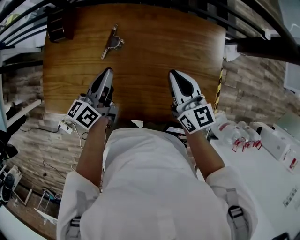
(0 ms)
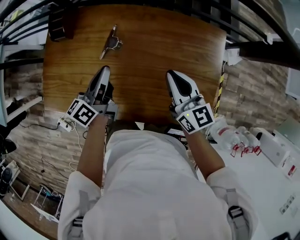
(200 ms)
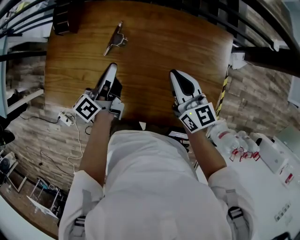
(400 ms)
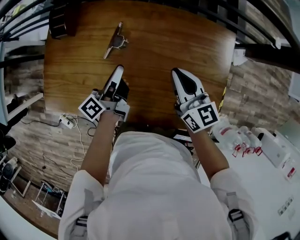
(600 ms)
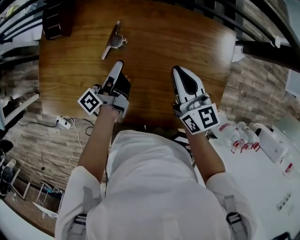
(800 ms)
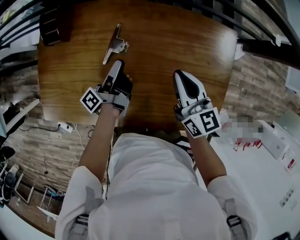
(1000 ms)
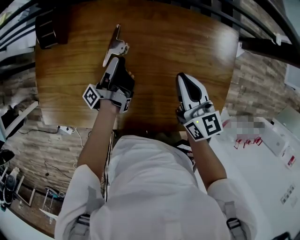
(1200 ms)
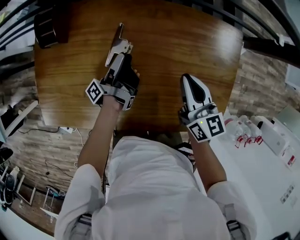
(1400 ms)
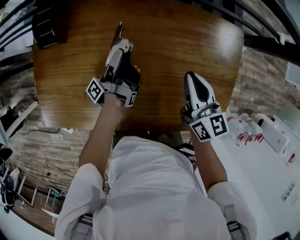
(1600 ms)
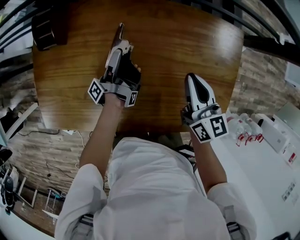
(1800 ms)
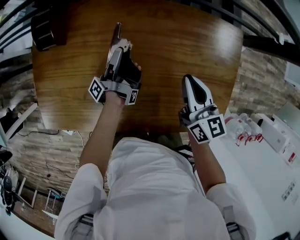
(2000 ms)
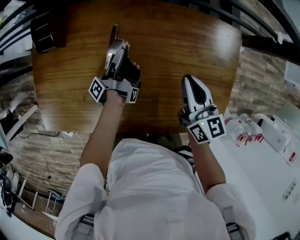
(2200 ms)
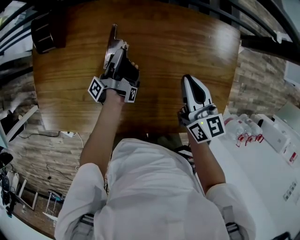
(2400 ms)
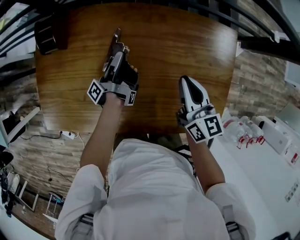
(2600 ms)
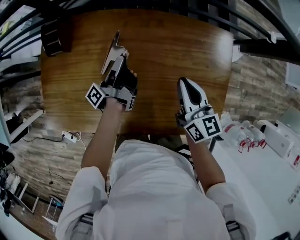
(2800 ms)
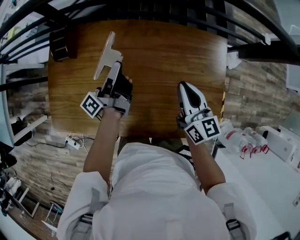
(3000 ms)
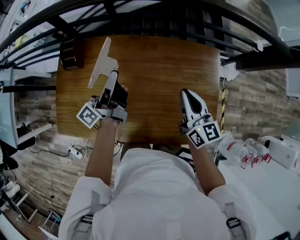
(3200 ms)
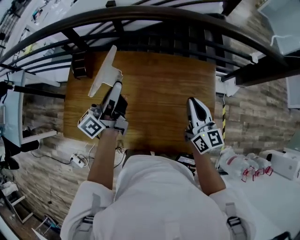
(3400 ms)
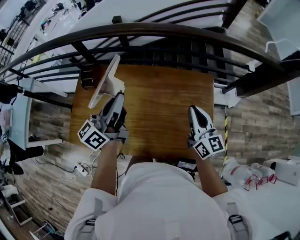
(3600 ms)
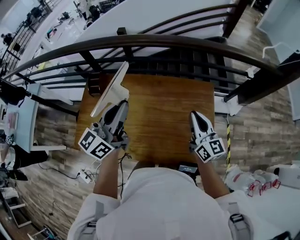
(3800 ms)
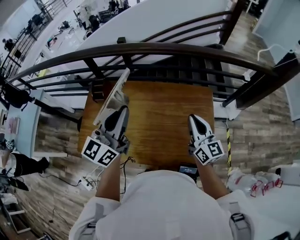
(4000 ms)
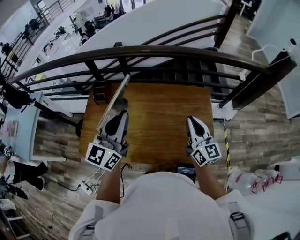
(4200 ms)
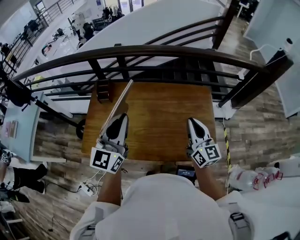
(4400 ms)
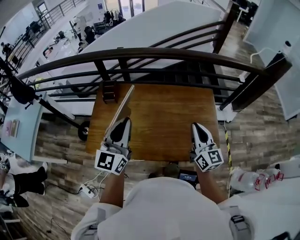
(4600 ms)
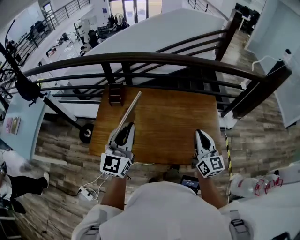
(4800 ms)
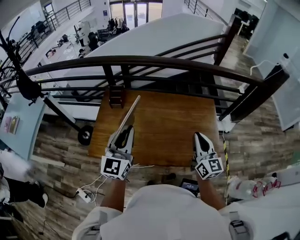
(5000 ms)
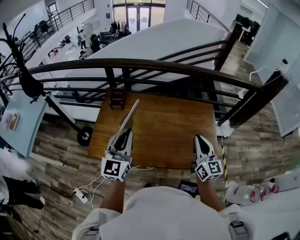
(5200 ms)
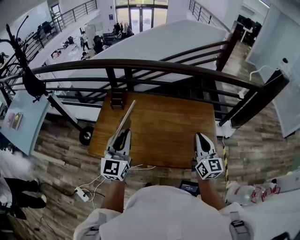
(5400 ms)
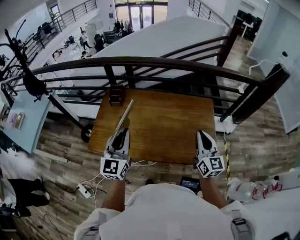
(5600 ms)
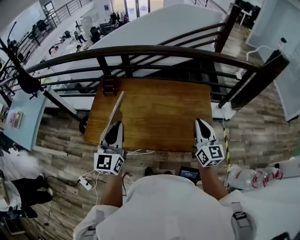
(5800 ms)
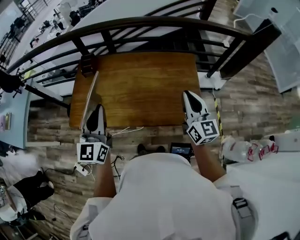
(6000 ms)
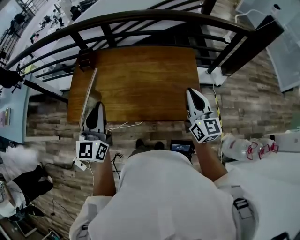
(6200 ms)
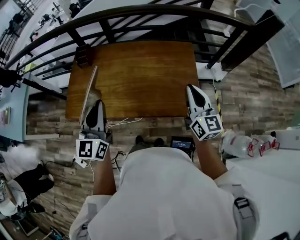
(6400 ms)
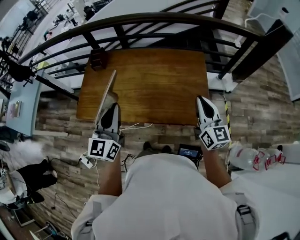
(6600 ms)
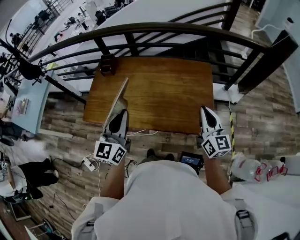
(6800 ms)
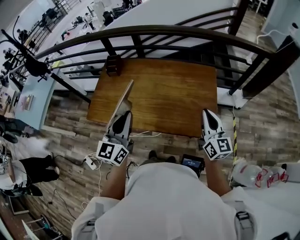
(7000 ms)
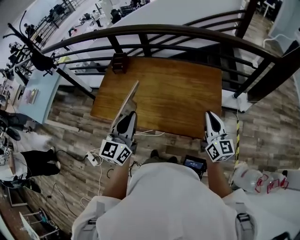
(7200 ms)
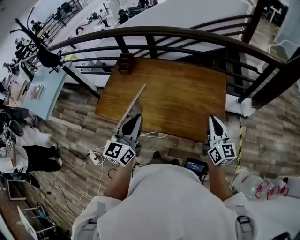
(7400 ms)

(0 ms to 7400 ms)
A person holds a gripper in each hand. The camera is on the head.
0 ms - 1400 ms: The left gripper shifts approximately 20 cm downward and forward, rotates around the line of its fingers by some 60 degrees, counterclockwise from behind, and opens its fingers. The right gripper goes roughly 5 cm downward.
1400 ms - 3000 ms: The right gripper heads upward, covering about 5 cm, while the left gripper travels upward by about 15 cm, rotates approximately 20 degrees, and closes its fingers.
3000 ms - 4400 ms: The right gripper is displaced upward and backward by approximately 25 cm. The left gripper heads upward and backward, covering approximately 40 cm, and twists about 90 degrees clockwise, seen from behind.
4400 ms - 6000 ms: The right gripper heads backward and to the right, covering about 10 cm. The left gripper travels backward by roughly 15 cm.
6000 ms - 7400 ms: The left gripper heads to the right and backward, covering approximately 10 cm. Meanwhile the right gripper heads downward, covering some 5 cm.

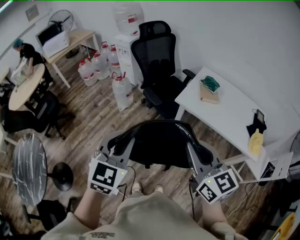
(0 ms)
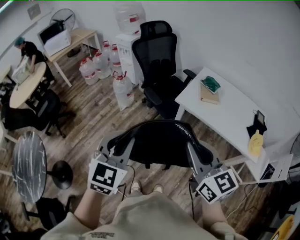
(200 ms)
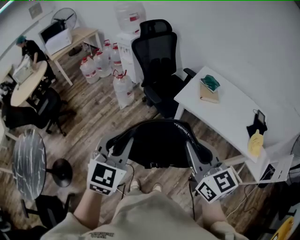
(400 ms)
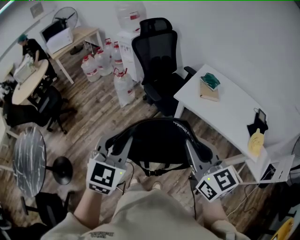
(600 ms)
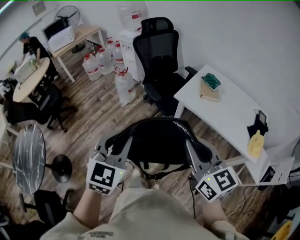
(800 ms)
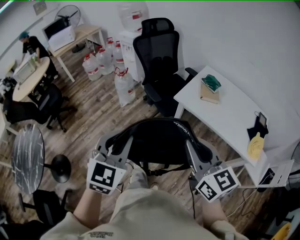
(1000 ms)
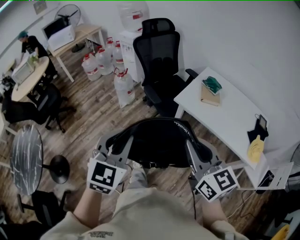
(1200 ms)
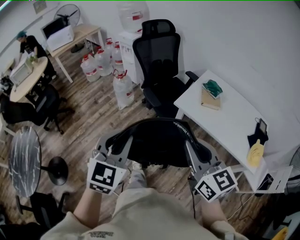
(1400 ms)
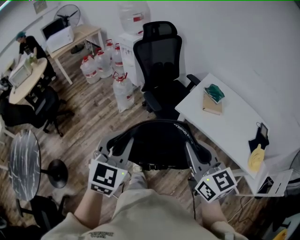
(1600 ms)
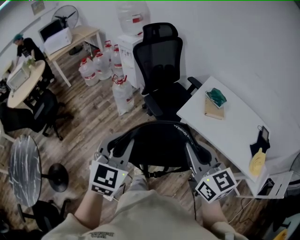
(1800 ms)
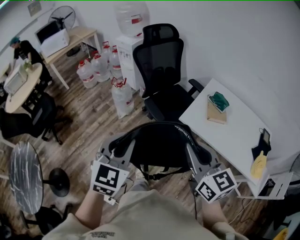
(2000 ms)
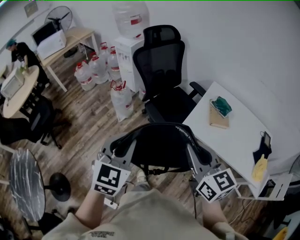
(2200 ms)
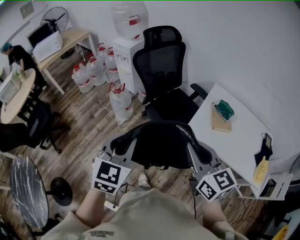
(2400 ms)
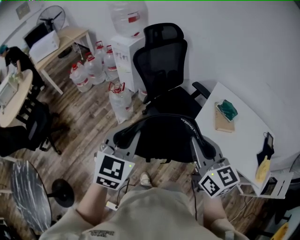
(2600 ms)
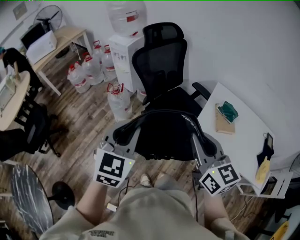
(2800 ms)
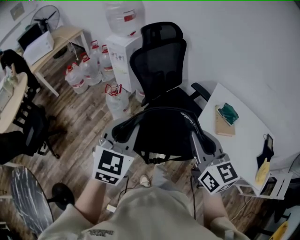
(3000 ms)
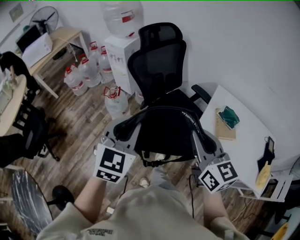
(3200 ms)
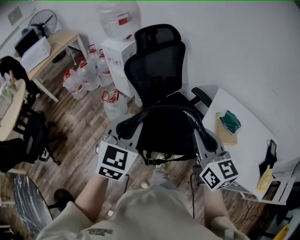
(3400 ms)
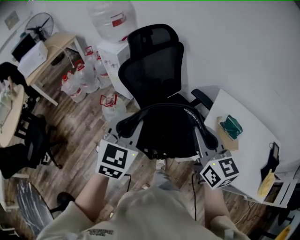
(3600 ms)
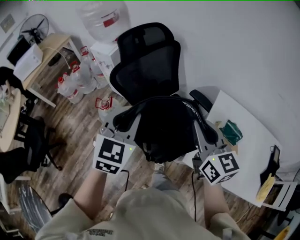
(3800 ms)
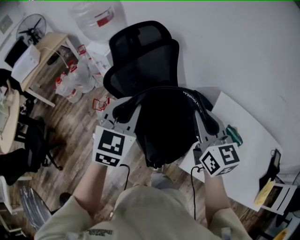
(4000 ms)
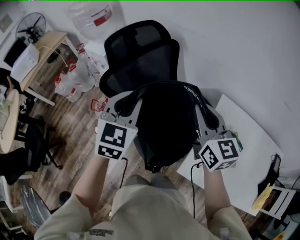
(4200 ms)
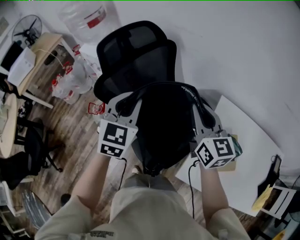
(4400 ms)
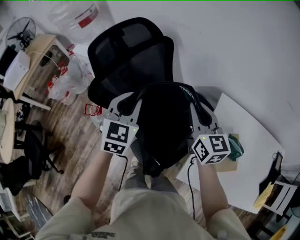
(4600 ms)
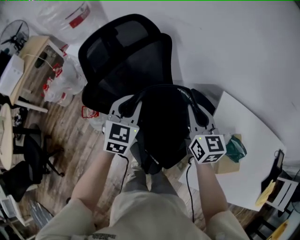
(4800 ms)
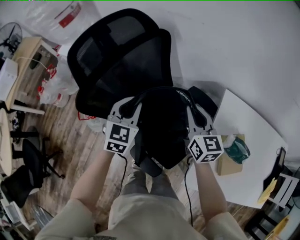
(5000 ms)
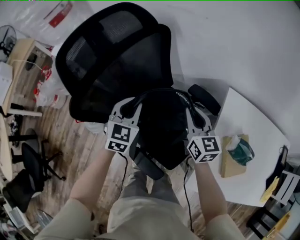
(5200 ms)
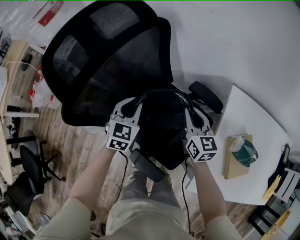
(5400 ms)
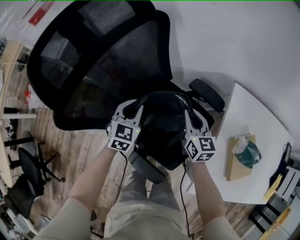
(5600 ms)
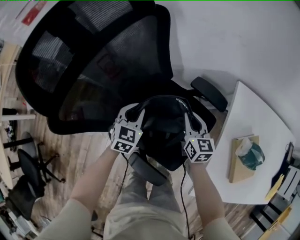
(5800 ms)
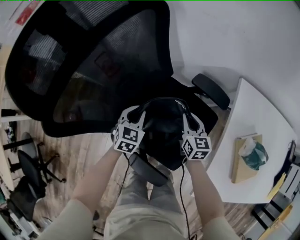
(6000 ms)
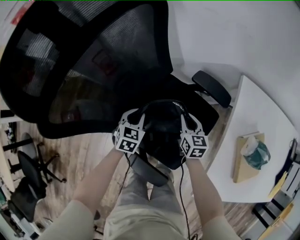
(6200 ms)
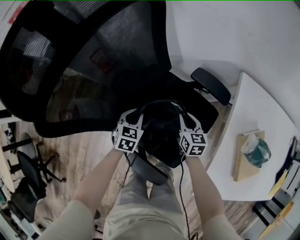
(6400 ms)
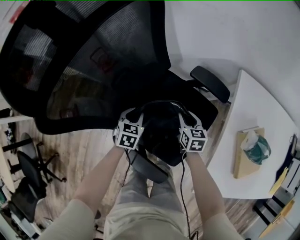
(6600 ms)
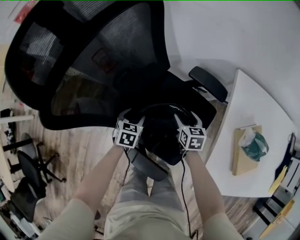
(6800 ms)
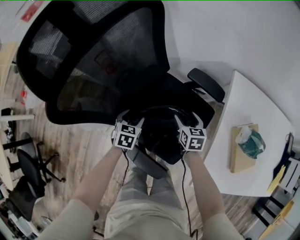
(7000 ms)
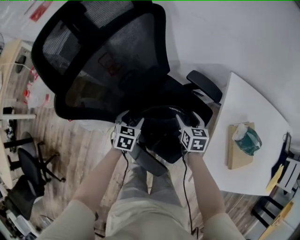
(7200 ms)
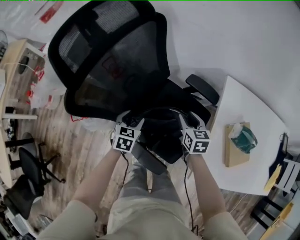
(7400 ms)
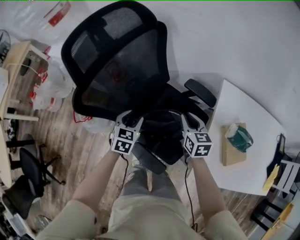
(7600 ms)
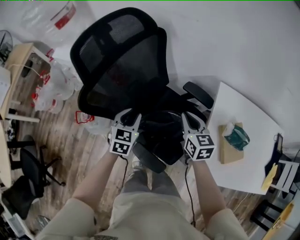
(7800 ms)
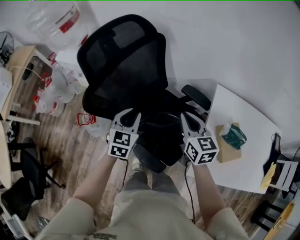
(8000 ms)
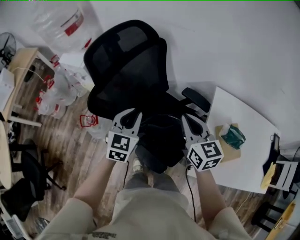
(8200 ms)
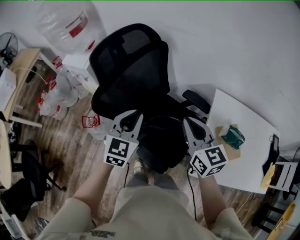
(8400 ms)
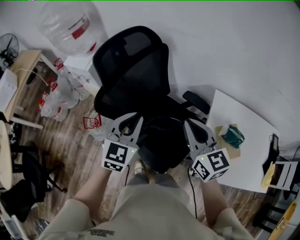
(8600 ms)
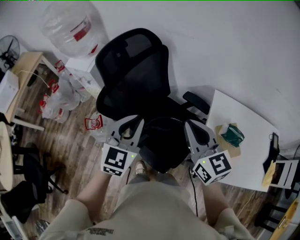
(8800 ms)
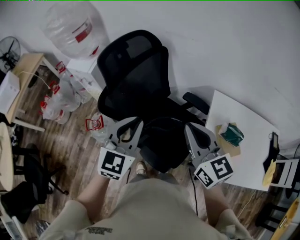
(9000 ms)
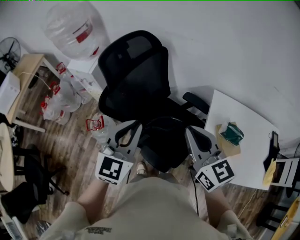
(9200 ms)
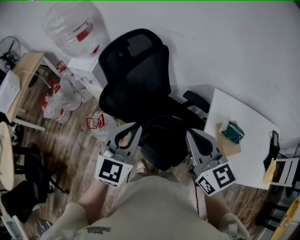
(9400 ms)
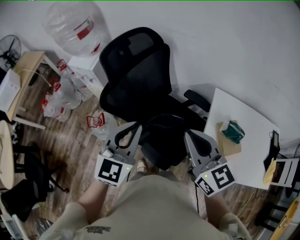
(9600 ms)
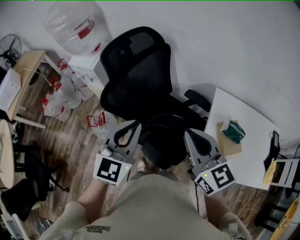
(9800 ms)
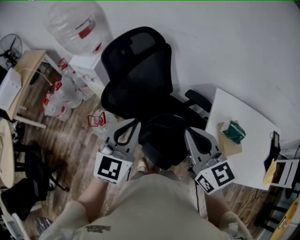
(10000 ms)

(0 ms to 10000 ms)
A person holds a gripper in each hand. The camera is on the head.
0 ms - 1400 ms: The right gripper shifts by roughly 5 cm. The left gripper ends up some 5 cm from where it was.
1400 ms - 2800 ms: The grippers both shift forward by some 30 cm.
2800 ms - 4200 ms: The pair of grippers is taken forward, approximately 40 cm.
4200 ms - 5800 ms: The left gripper goes about 40 cm downward and forward, and turns by some 20 degrees; the right gripper travels downward by about 40 cm, and rotates approximately 30 degrees.
5800 ms - 7200 ms: The left gripper is displaced backward by some 10 cm, and opens its fingers. Meanwhile the right gripper heads backward, covering about 5 cm, travels downward and back again, roughly 10 cm each way, and opens up.
7200 ms - 8600 ms: Both grippers move upward, about 40 cm. The right gripper points its fingers about 30 degrees further upward, and closes up; the left gripper angles its fingers upward, by about 30 degrees, and closes up.
8600 ms - 10000 ms: The right gripper goes about 5 cm backward; the left gripper heads upward and backward, covering about 10 cm.

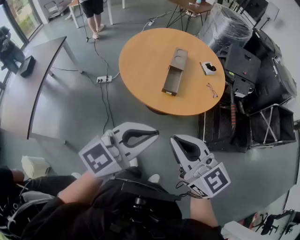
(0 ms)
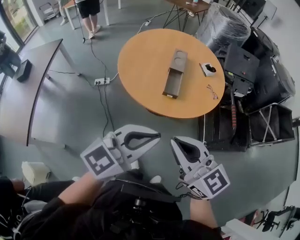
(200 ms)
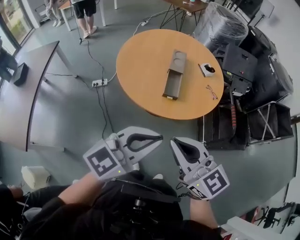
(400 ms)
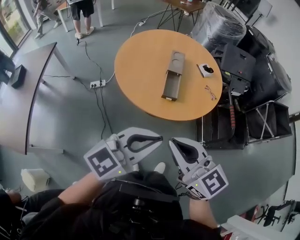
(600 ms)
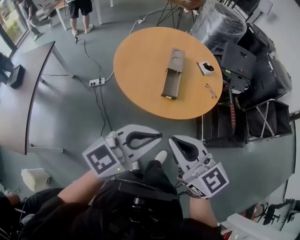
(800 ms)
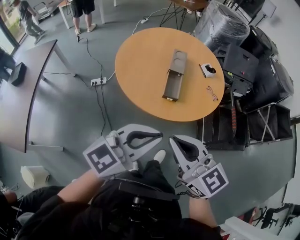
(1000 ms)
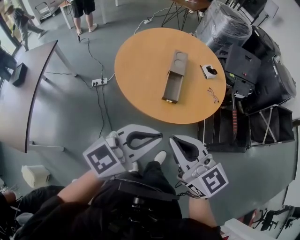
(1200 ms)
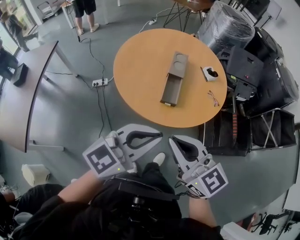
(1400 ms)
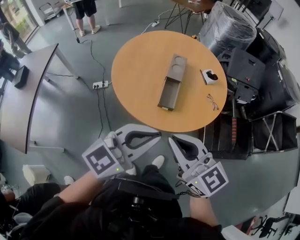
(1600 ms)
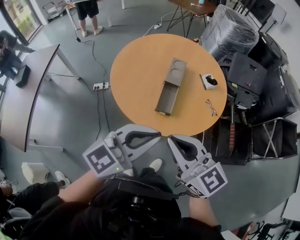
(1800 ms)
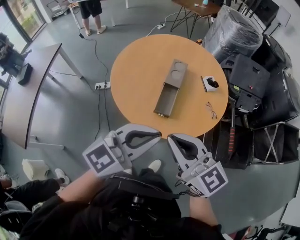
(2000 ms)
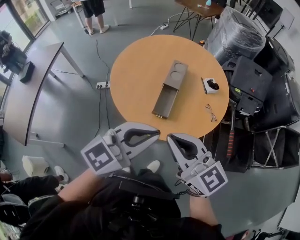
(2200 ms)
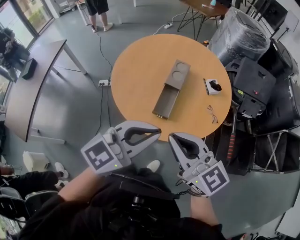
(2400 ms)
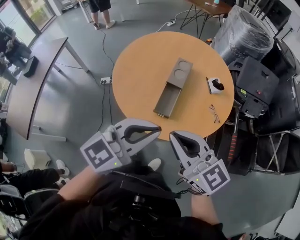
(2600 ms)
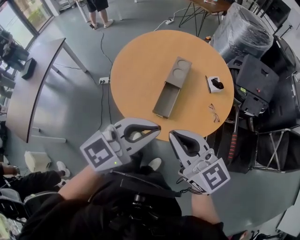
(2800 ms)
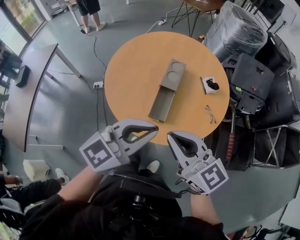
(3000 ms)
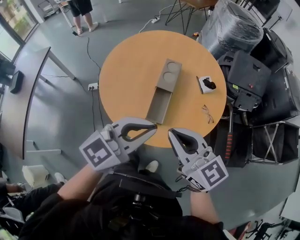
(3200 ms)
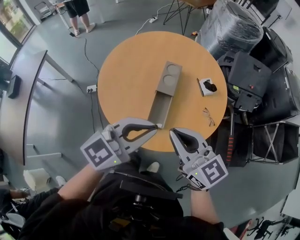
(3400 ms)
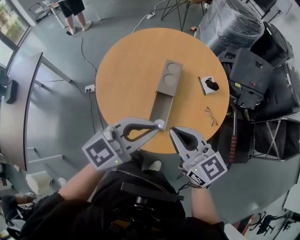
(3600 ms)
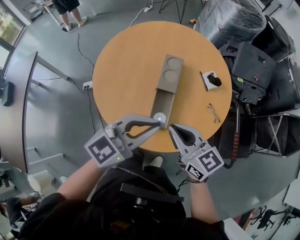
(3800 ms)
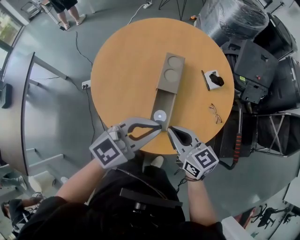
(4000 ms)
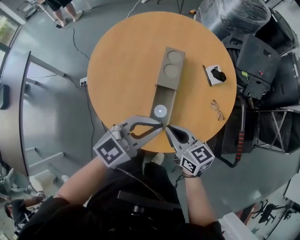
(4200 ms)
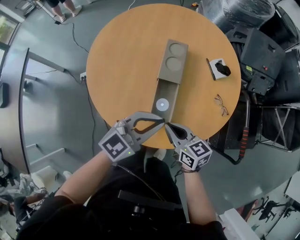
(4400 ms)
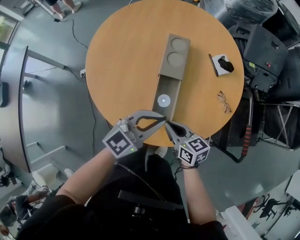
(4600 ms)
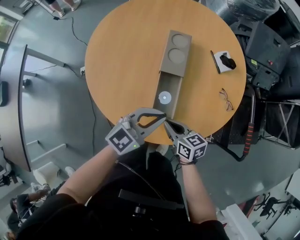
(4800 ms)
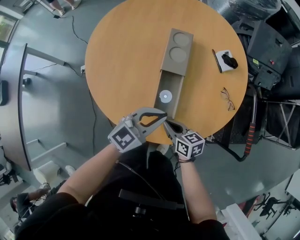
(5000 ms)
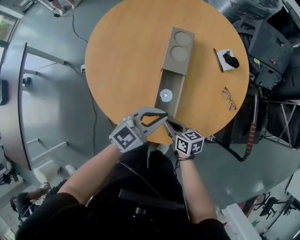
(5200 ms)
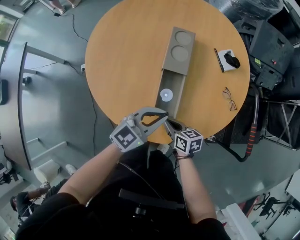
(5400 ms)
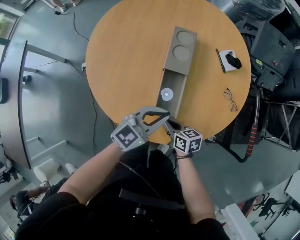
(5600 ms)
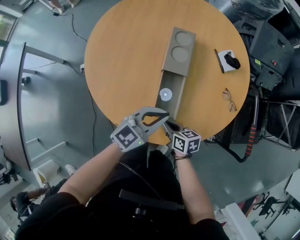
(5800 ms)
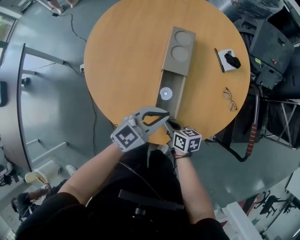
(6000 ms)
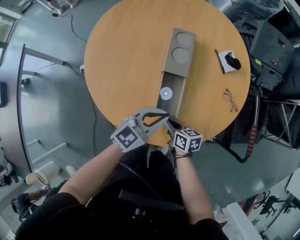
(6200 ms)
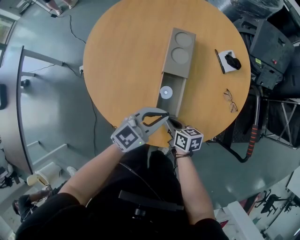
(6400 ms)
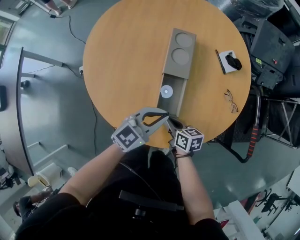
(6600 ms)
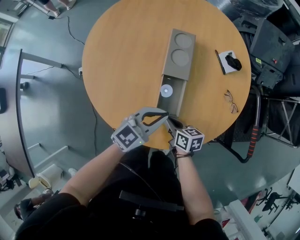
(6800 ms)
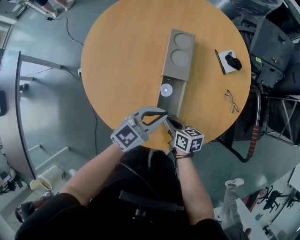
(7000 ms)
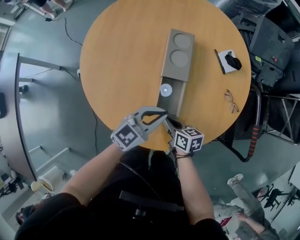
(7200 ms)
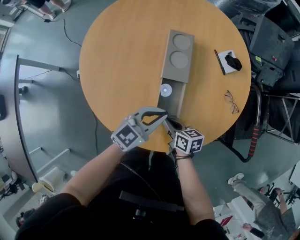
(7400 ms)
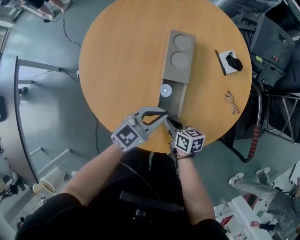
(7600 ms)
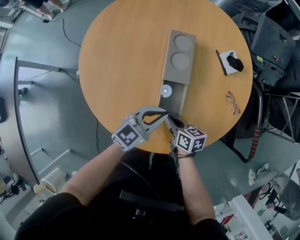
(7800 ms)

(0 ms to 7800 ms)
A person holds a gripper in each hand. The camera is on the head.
0 ms - 1600 ms: The two grippers go approximately 20 cm forward.
1600 ms - 3200 ms: The right gripper goes roughly 20 cm forward and to the right; the left gripper moves forward, roughly 20 cm.
3200 ms - 4600 ms: The right gripper moves downward, some 35 cm, and rotates about 40 degrees. The left gripper is displaced downward and forward by roughly 30 cm.
4600 ms - 6200 ms: The grippers both shift downward by roughly 10 cm.
6200 ms - 7800 ms: Both grippers move forward, approximately 5 cm.
